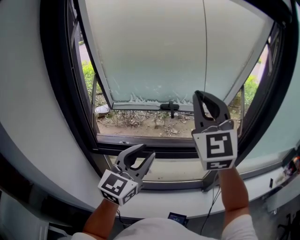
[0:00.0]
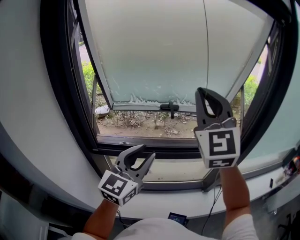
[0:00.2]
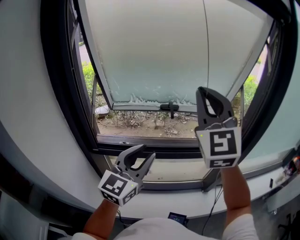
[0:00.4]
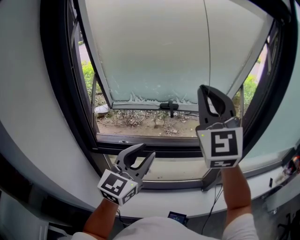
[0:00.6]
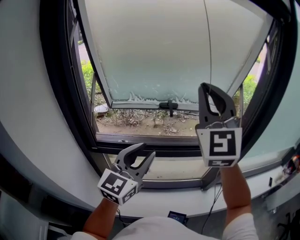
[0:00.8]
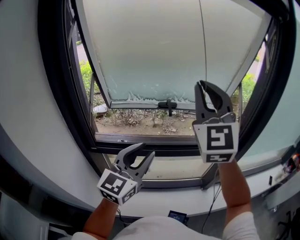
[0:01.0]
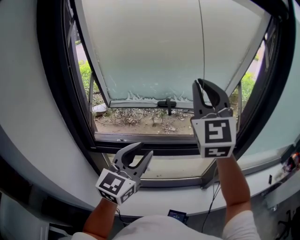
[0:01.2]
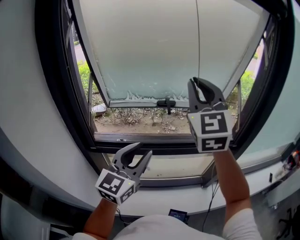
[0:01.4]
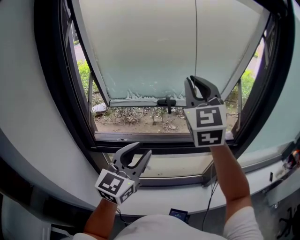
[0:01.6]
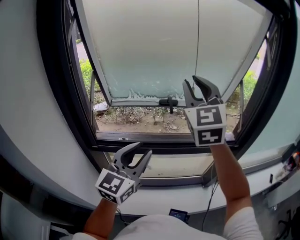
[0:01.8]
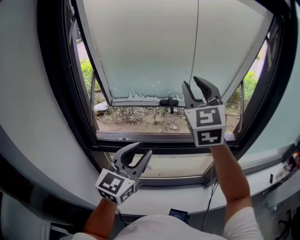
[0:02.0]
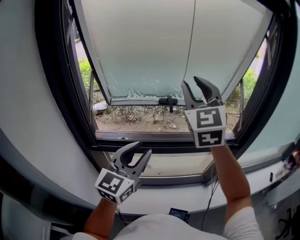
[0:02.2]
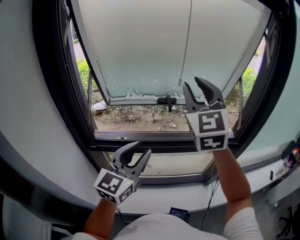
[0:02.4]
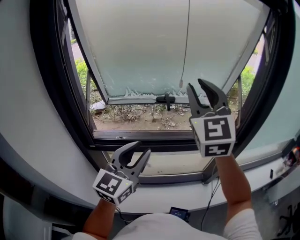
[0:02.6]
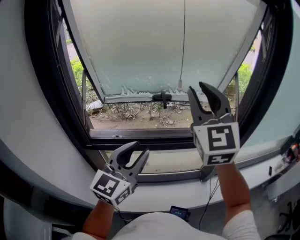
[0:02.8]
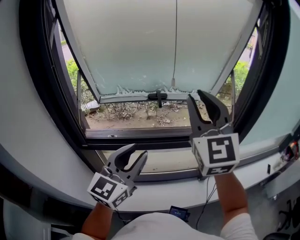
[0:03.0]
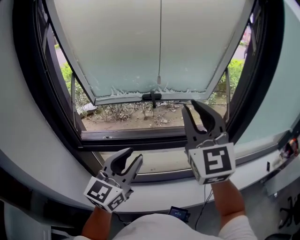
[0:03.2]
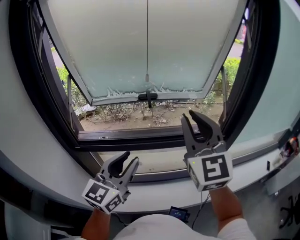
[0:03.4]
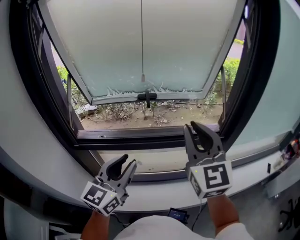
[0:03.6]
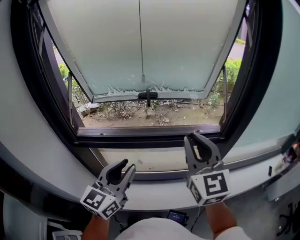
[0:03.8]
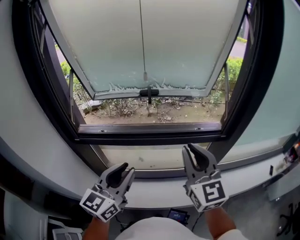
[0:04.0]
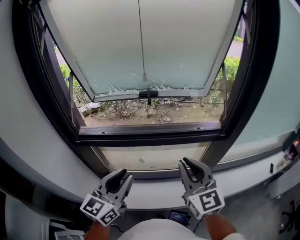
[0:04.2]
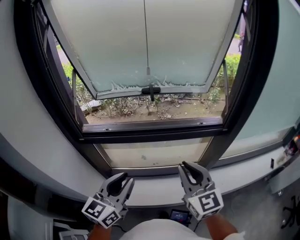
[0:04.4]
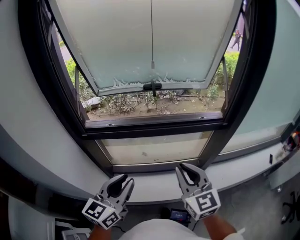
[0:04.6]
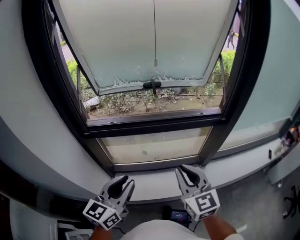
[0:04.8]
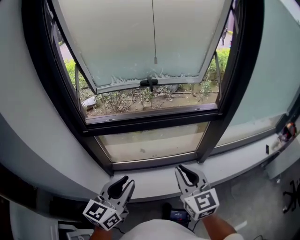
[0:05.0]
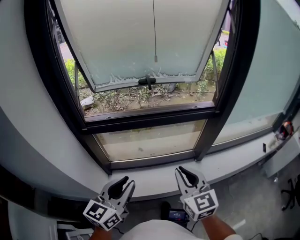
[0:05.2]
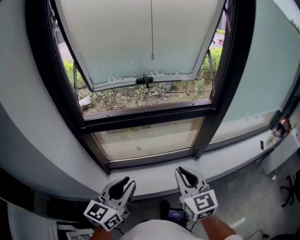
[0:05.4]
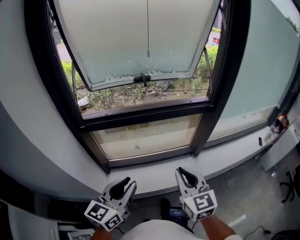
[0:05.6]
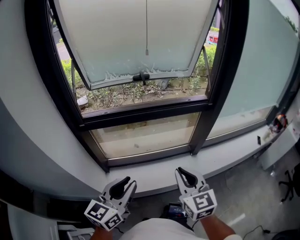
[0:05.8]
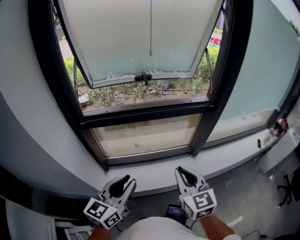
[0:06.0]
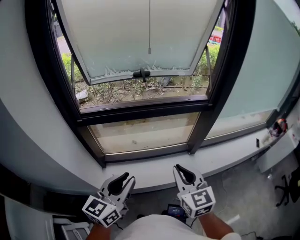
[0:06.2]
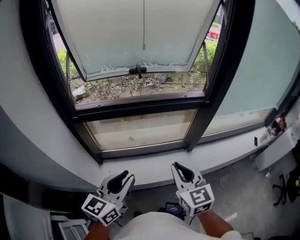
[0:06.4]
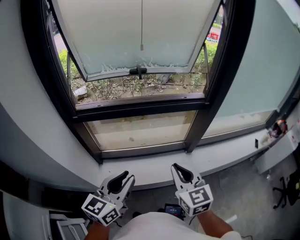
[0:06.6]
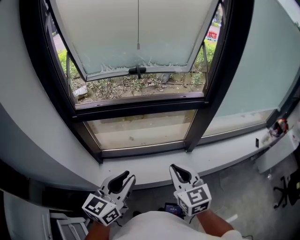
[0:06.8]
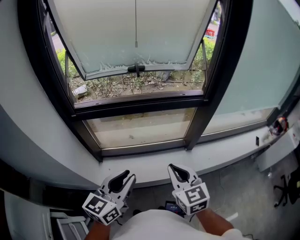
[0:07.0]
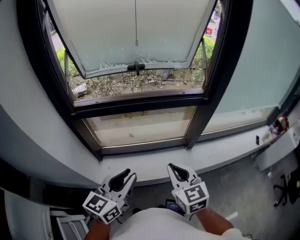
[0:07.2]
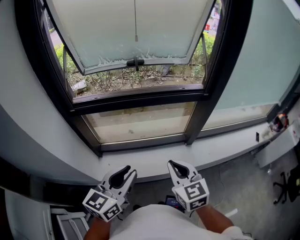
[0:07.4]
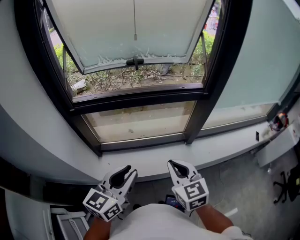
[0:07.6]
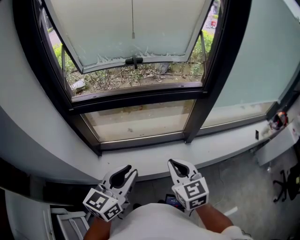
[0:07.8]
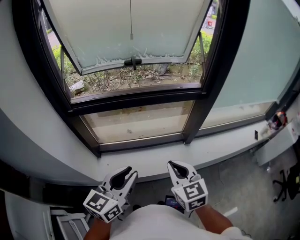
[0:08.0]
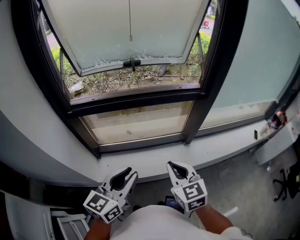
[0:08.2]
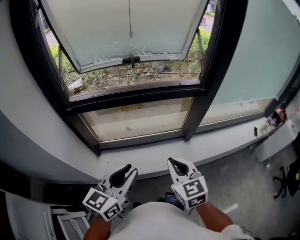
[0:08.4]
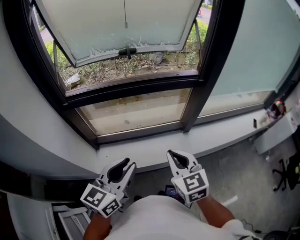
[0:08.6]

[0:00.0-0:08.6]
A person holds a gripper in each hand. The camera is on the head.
0.0 to 1.4 s: The grippers stay close to where they were, moving slightly.
1.4 to 2.8 s: The right gripper opens.
2.8 to 4.4 s: The left gripper goes roughly 15 cm backward and downward. Meanwhile the right gripper shifts some 30 cm downward and backward, and turns by some 30 degrees.
4.4 to 5.8 s: Both grippers move backward, approximately 15 cm.
5.8 to 7.2 s: The left gripper heads to the right, covering some 5 cm.
7.2 to 8.6 s: Neither gripper changes place.

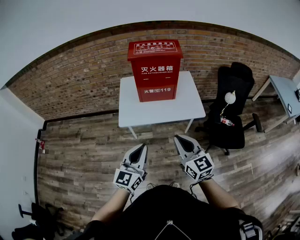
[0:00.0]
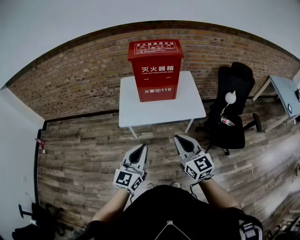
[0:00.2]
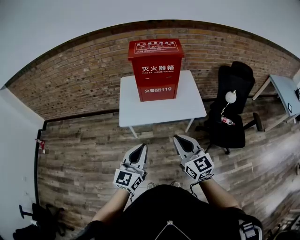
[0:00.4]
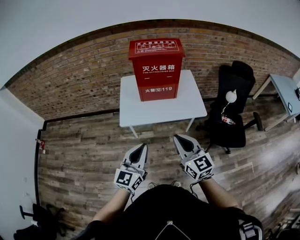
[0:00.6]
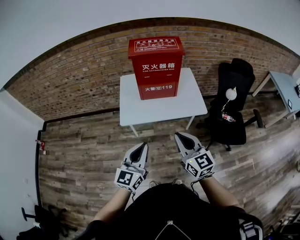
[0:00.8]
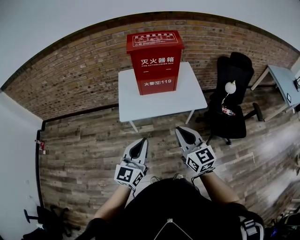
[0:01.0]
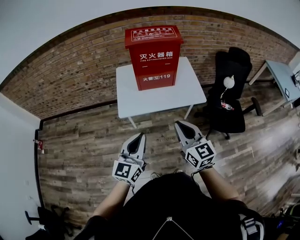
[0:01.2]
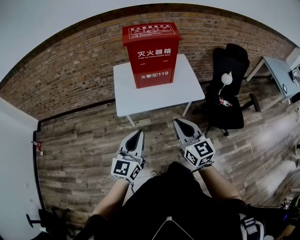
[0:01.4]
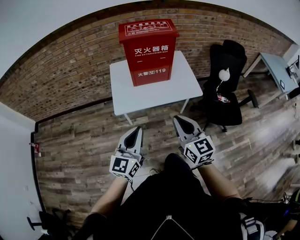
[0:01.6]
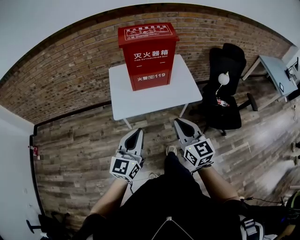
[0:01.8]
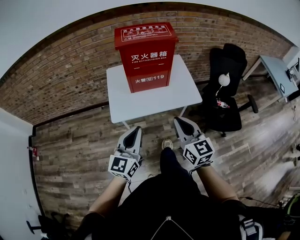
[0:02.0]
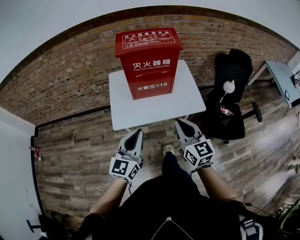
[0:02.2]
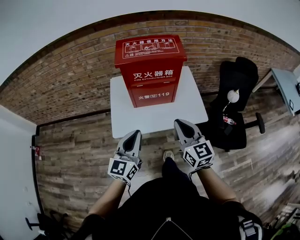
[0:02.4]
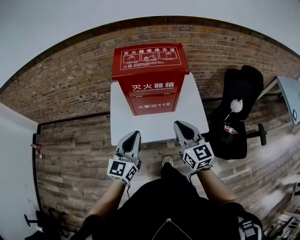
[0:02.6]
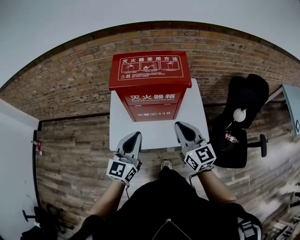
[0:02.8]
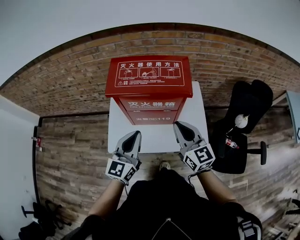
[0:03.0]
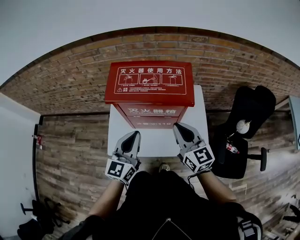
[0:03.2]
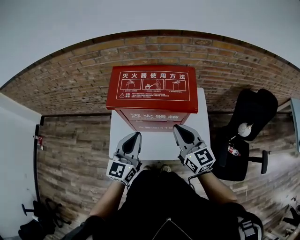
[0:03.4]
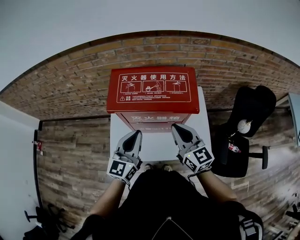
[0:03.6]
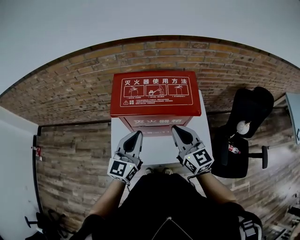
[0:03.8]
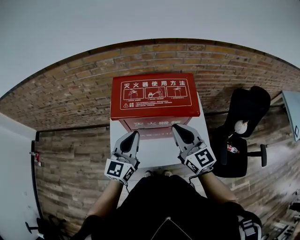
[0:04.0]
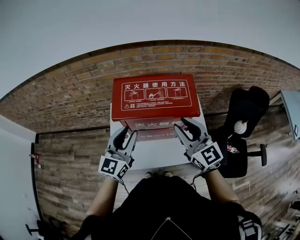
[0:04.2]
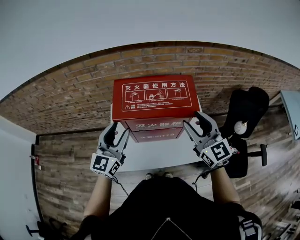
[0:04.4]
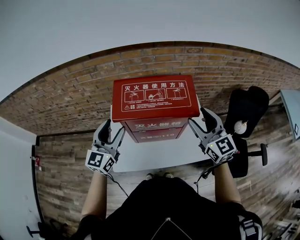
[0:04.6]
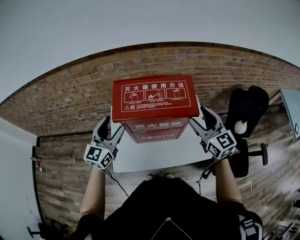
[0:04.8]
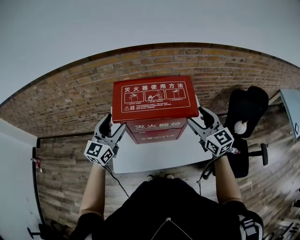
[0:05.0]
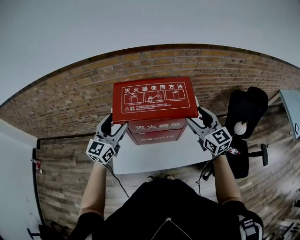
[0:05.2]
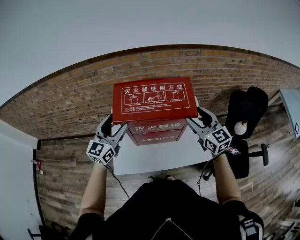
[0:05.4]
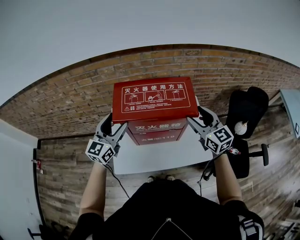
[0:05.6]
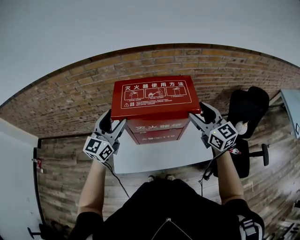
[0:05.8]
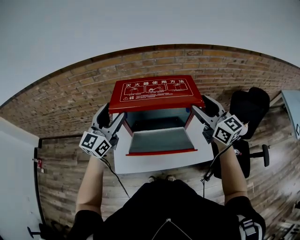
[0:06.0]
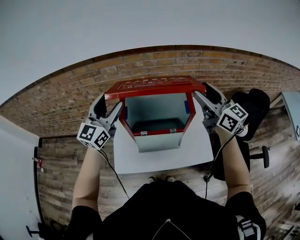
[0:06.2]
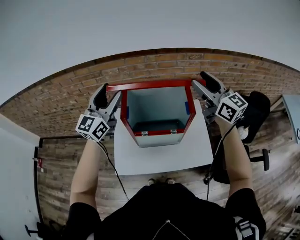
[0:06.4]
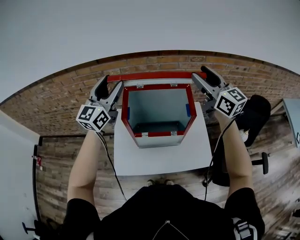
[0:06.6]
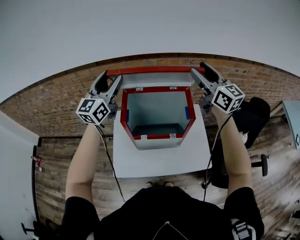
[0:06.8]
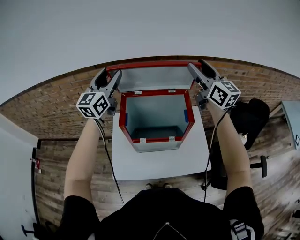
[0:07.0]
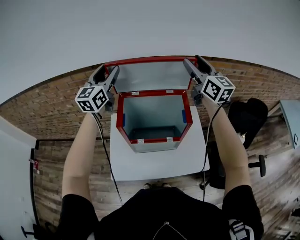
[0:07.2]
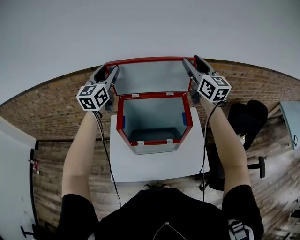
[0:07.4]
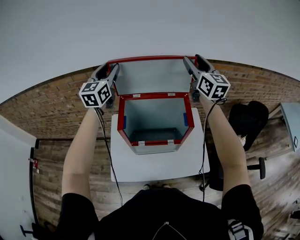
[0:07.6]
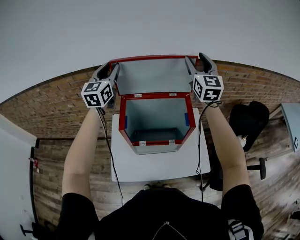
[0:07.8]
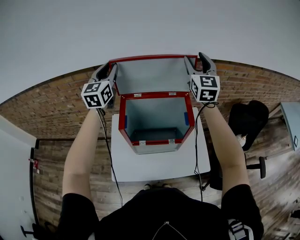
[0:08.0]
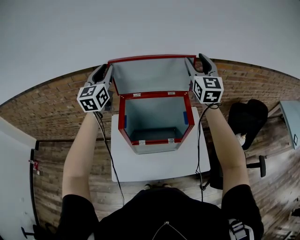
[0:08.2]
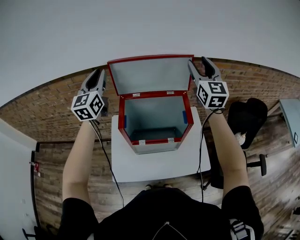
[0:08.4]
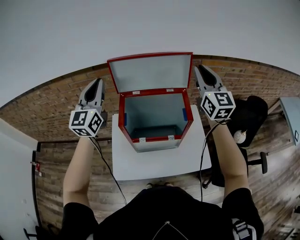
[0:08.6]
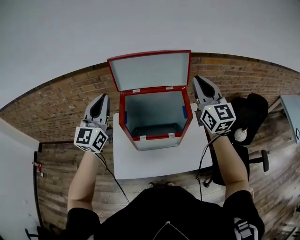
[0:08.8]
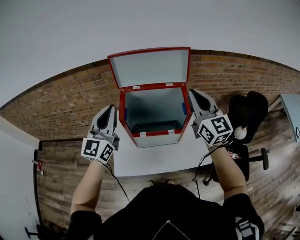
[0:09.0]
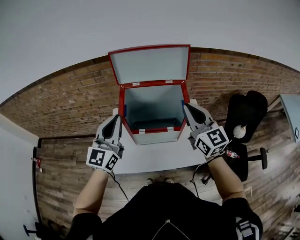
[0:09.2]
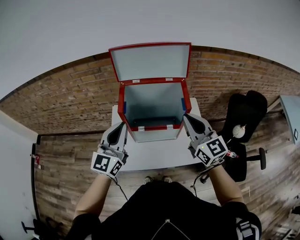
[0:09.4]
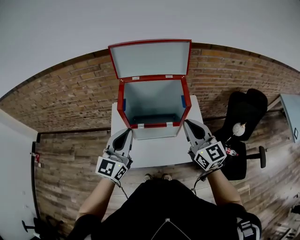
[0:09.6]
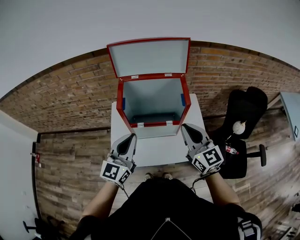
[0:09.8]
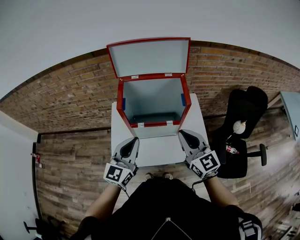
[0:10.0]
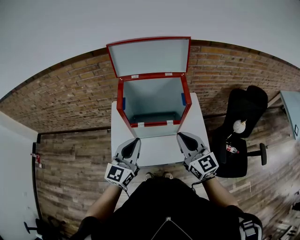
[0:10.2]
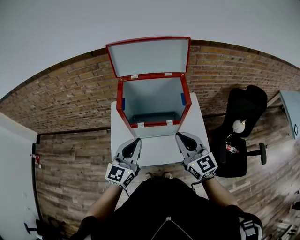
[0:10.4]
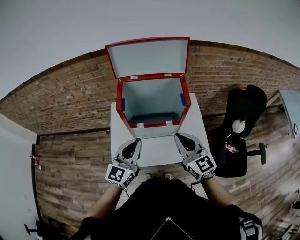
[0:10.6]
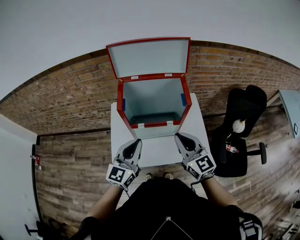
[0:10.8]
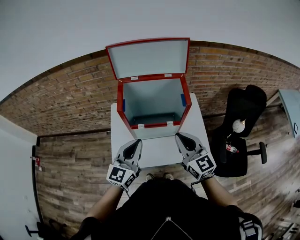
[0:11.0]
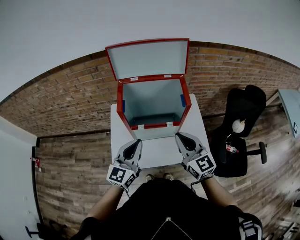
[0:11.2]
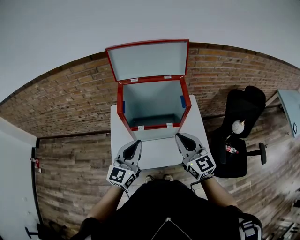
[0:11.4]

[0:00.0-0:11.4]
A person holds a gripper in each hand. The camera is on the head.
0.0 to 1.4 s: The left gripper is displaced to the left by roughly 5 cm.
1.4 to 2.8 s: Both grippers travel together forward, about 35 cm.
2.8 to 4.2 s: The right gripper is displaced forward and upward by some 15 cm. Meanwhile the left gripper heads forward, covering roughly 15 cm, and opens up.
4.2 to 5.6 s: The right gripper heads to the right and forward, covering roughly 10 cm, and opens. Meanwhile the left gripper travels forward by about 5 cm, and opens up.
5.6 to 7.2 s: The left gripper travels forward and upward by roughly 25 cm, while the right gripper travels upward and forward by some 25 cm, and swivels roughly 20 degrees.
7.2 to 8.6 s: Both grippers move backward, roughly 5 cm. The left gripper closes. Meanwhile the right gripper closes its fingers.
8.6 to 10.0 s: The left gripper shifts about 30 cm backward, downward and to the right, and swivels some 20 degrees, while the right gripper moves backward and downward, about 30 cm, and rotates approximately 20 degrees.
10.0 to 11.4 s: The grippers stay close to where they were, moving slightly.

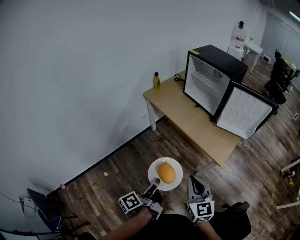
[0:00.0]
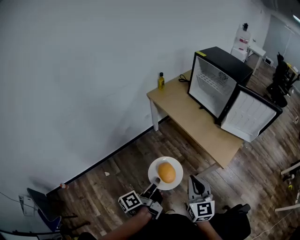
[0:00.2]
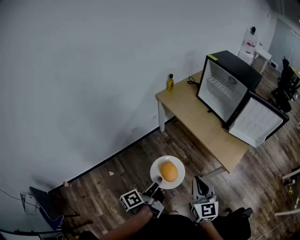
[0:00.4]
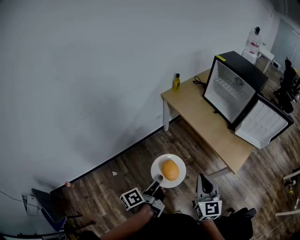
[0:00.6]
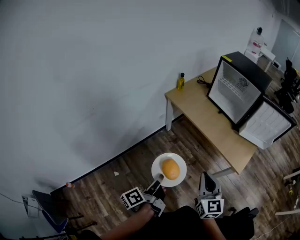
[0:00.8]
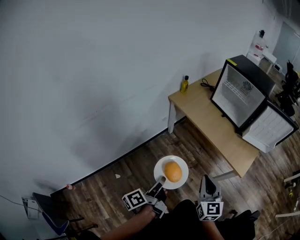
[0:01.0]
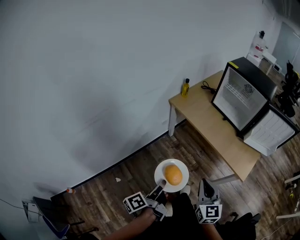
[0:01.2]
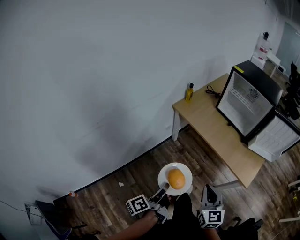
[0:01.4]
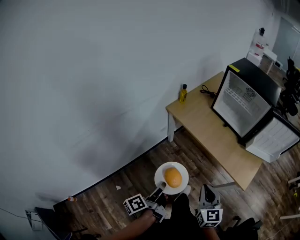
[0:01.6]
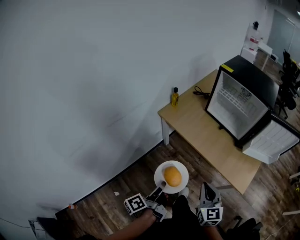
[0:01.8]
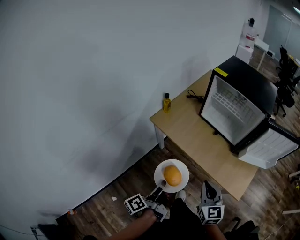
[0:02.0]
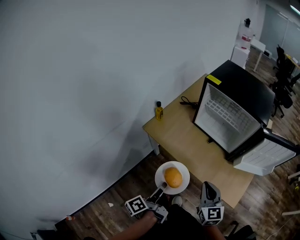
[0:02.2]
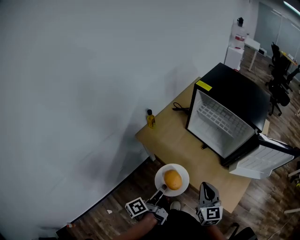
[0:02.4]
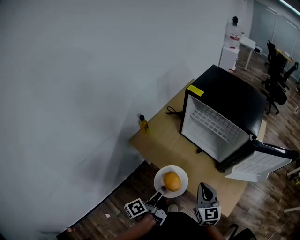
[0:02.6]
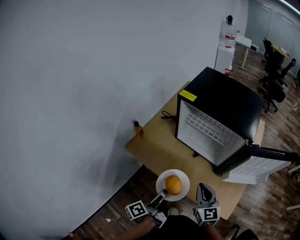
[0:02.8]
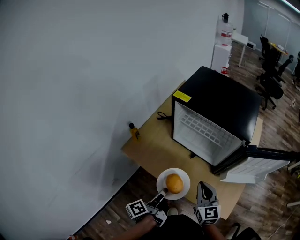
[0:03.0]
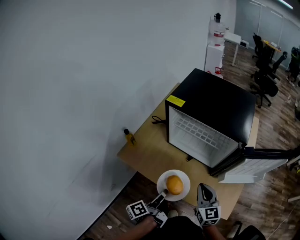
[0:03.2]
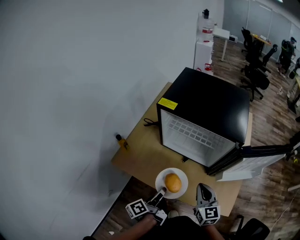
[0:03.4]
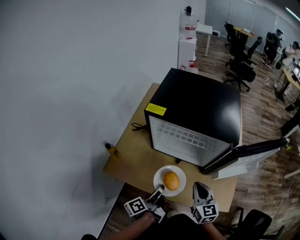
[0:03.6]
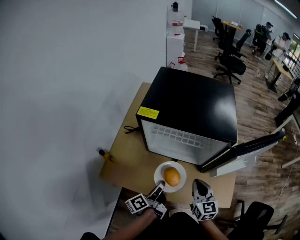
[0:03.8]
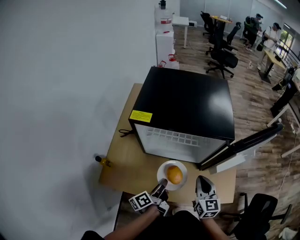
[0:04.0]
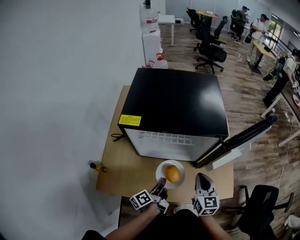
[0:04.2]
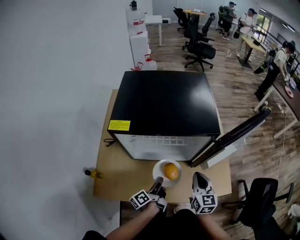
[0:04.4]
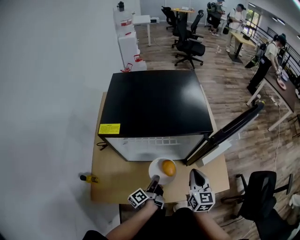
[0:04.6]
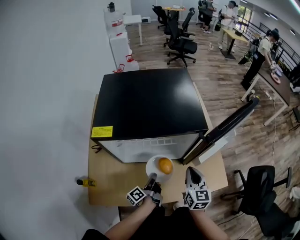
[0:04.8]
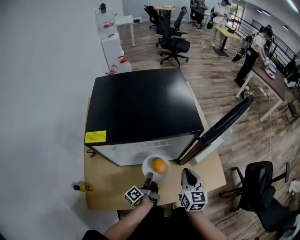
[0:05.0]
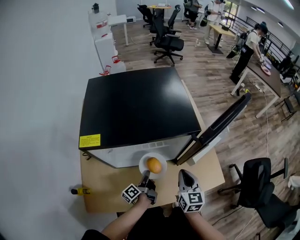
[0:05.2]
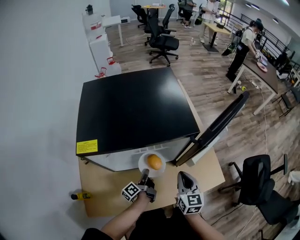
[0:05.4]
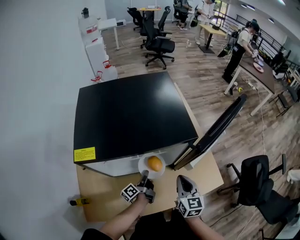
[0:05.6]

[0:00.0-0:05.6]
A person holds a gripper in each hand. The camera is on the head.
0.0 to 1.4 s: The two grippers go about 20 cm to the left and forward.
1.4 to 2.8 s: The grippers both shift forward and to the right by some 40 cm.
2.8 to 4.2 s: The right gripper changes place by some 15 cm, and swivels some 40 degrees. The left gripper changes place by about 20 cm, and turns by some 30 degrees.
4.2 to 5.6 s: The left gripper is displaced forward and downward by approximately 15 cm.
